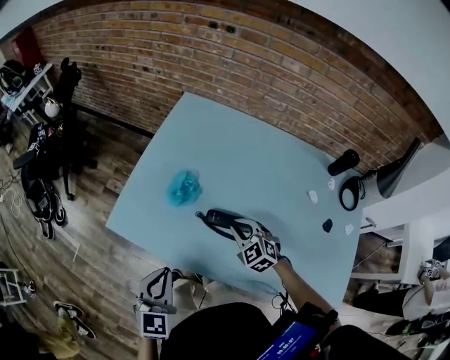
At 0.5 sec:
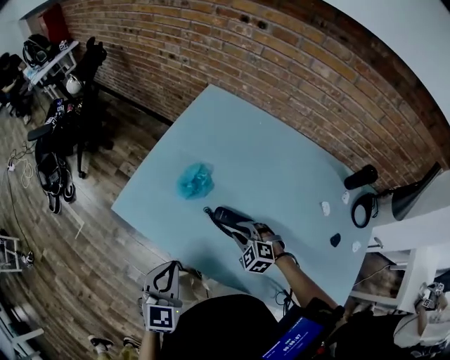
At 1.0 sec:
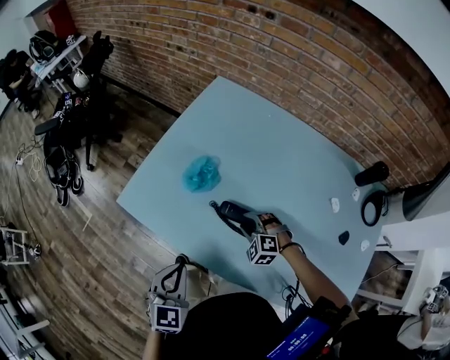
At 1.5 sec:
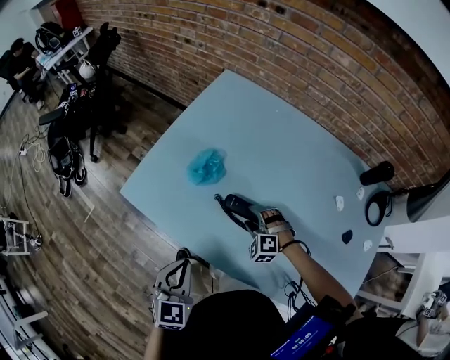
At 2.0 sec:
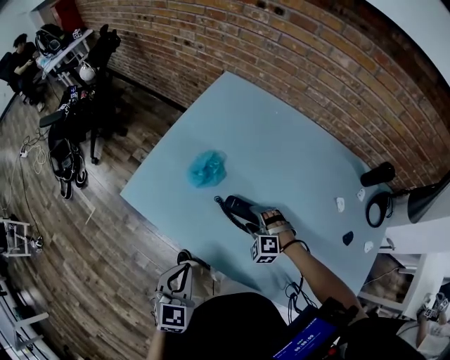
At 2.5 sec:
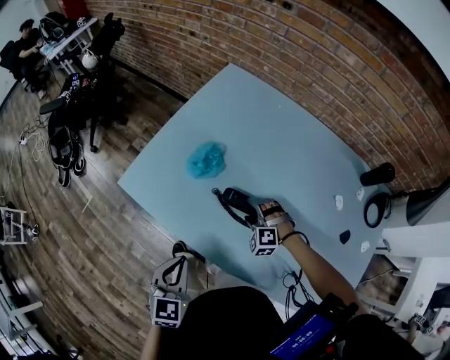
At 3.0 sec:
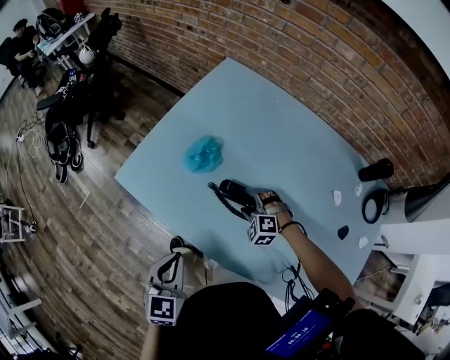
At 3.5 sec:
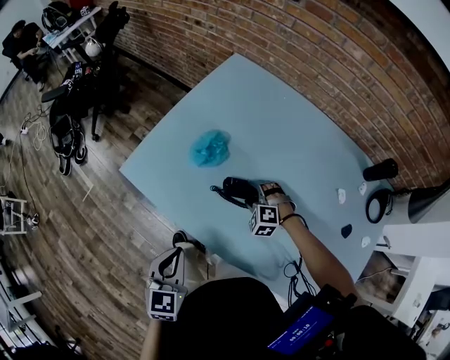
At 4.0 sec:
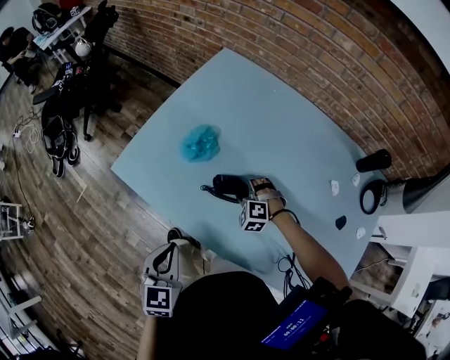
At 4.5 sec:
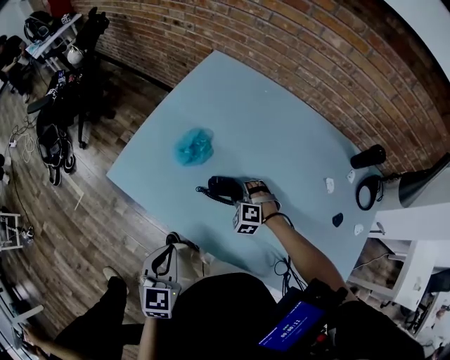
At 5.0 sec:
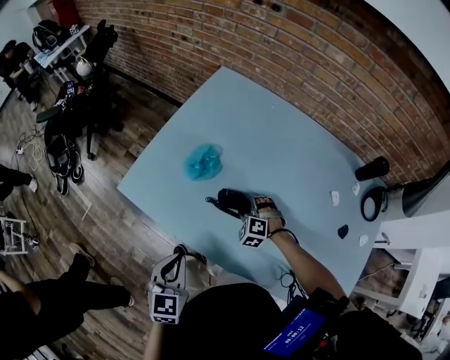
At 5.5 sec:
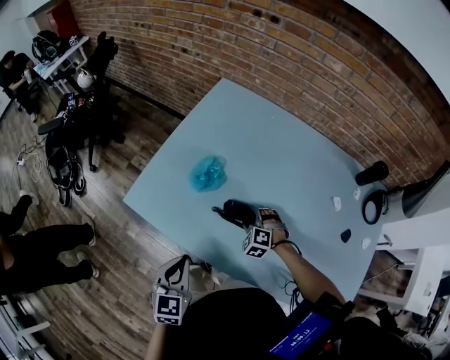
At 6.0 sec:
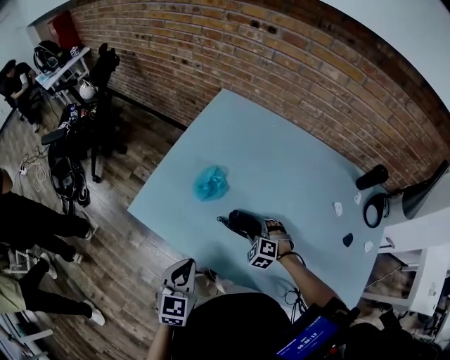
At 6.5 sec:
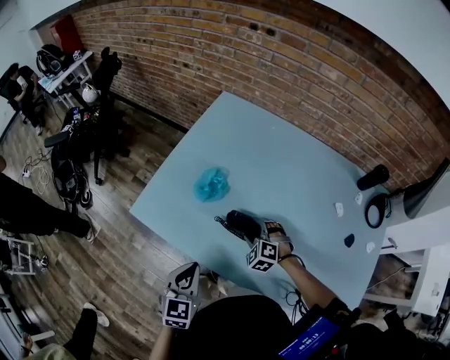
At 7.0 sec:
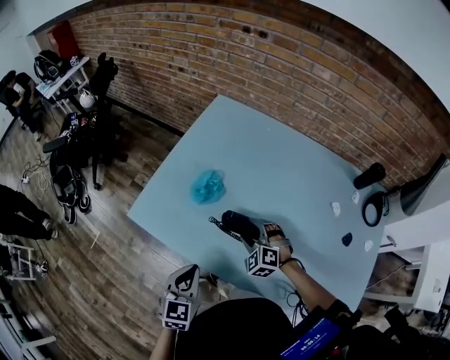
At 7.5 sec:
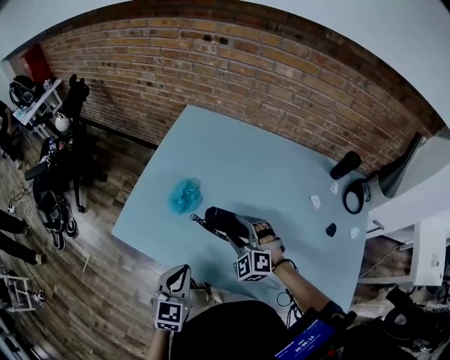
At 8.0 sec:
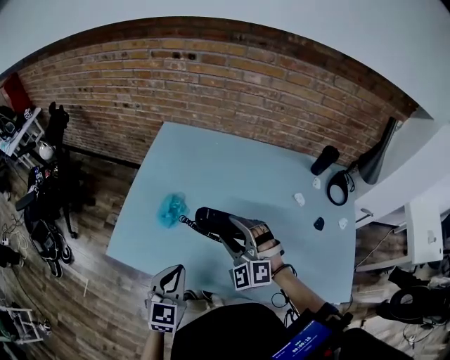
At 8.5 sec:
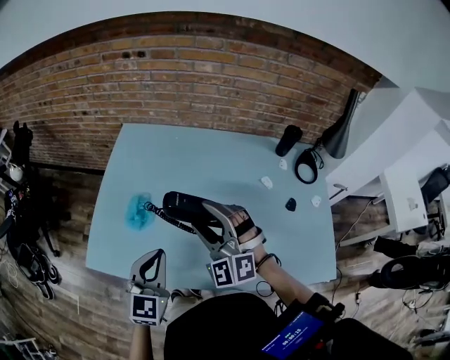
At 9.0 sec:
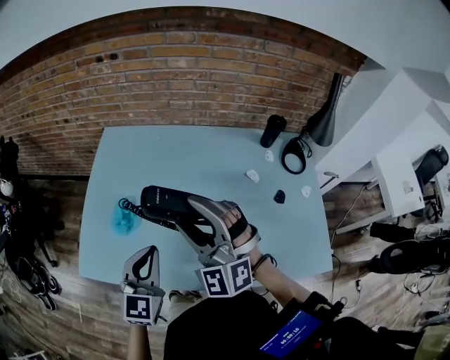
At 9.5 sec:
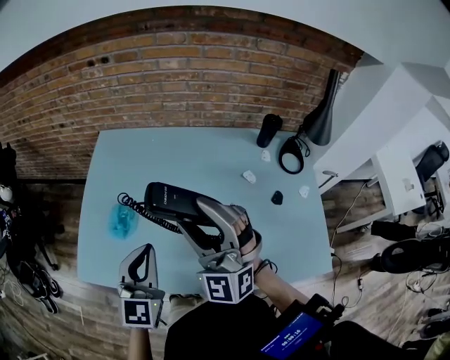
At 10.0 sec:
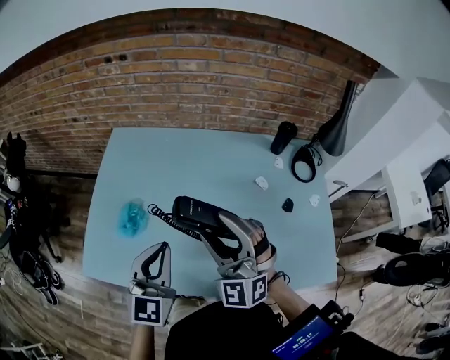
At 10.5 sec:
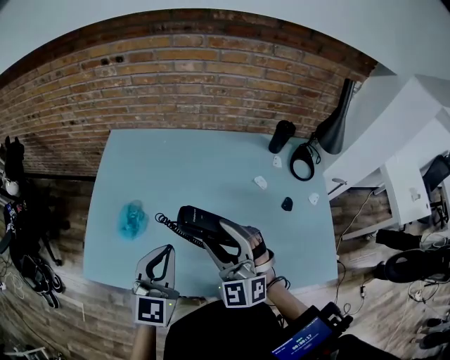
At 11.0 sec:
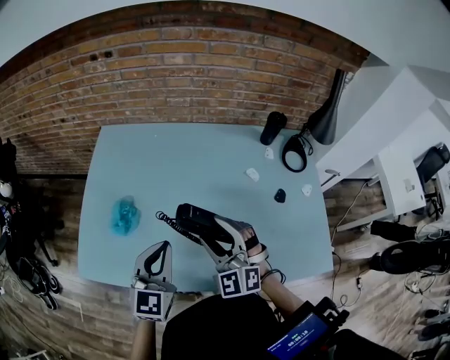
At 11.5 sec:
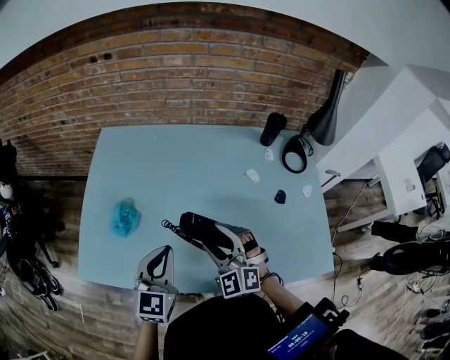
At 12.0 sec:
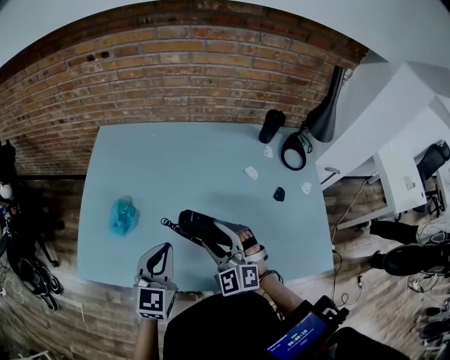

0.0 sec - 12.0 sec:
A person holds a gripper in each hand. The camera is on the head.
0.0 sec - 2.0 sec: The right gripper is displaced downward by roughly 10 cm, rolls counterclockwise, seen from behind, by about 40 degrees, and opens. Meanwhile the left gripper travels downward by about 5 cm.
2.0 sec - 4.0 sec: The grippers move only a little.
4.0 sec - 6.0 sec: The left gripper heads forward, covering about 5 cm.
6.0 sec - 8.0 sec: The right gripper moves upward, approximately 25 cm, and tilts its fingers approximately 30 degrees upward. Meanwhile the left gripper shifts roughly 10 cm to the right and upward.
8.0 sec - 10.0 sec: The left gripper is displaced to the right, upward and forward by approximately 15 cm. Meanwhile the right gripper goes some 15 cm upward and to the right, and rotates some 20 degrees.
10.0 sec - 12.0 sec: The right gripper travels downward by about 15 cm. The left gripper moves downward, some 5 cm.

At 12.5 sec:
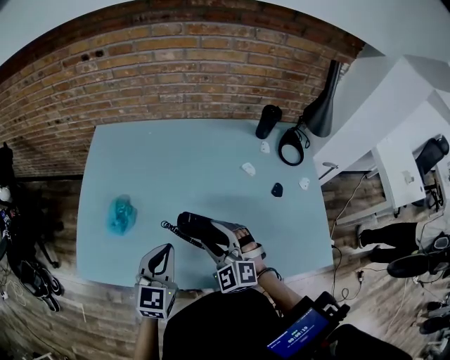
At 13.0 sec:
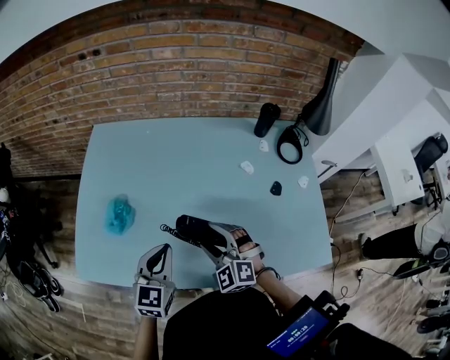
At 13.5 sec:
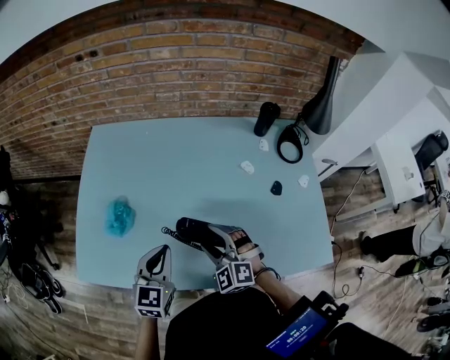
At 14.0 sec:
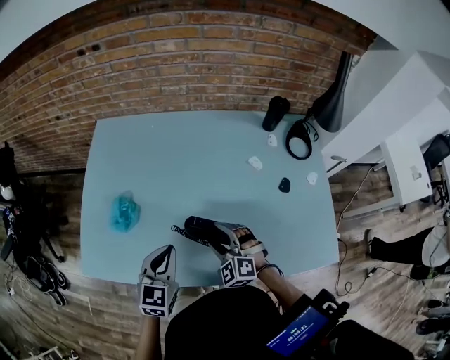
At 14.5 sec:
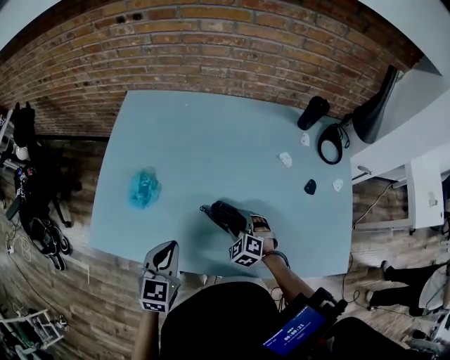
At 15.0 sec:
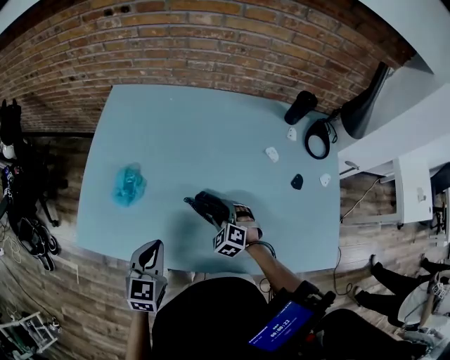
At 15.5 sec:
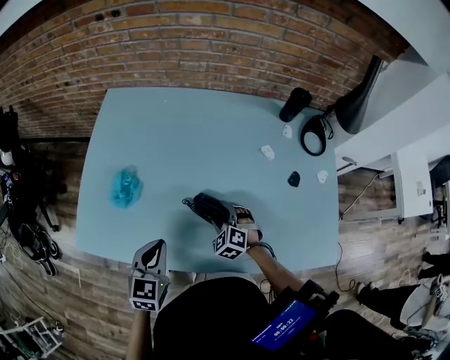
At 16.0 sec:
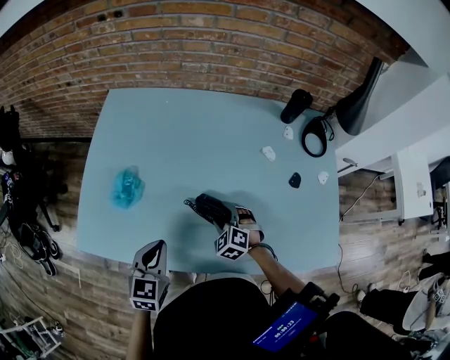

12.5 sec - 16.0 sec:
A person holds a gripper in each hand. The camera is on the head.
12.5 sec - 14.5 sec: The right gripper heads downward, covering some 20 cm, and rotates roughly 20 degrees. Meanwhile the left gripper goes roughly 5 cm to the left.
14.5 sec - 16.0 sec: The grippers stay close to where they were, moving slightly.

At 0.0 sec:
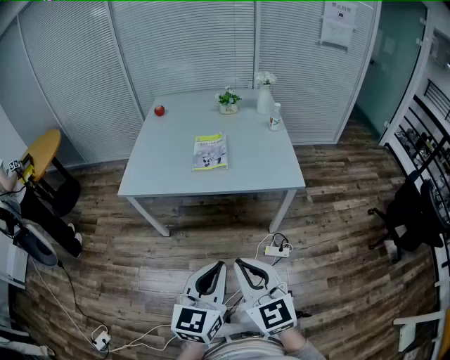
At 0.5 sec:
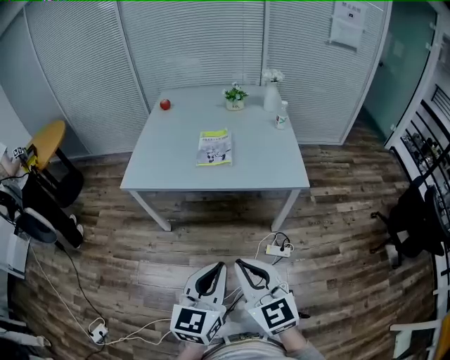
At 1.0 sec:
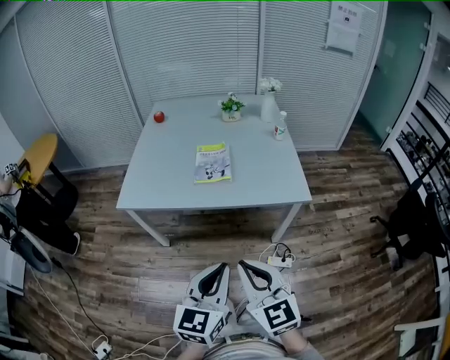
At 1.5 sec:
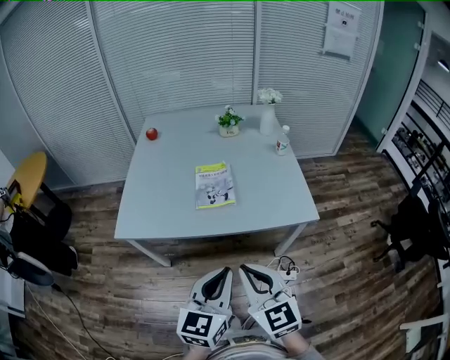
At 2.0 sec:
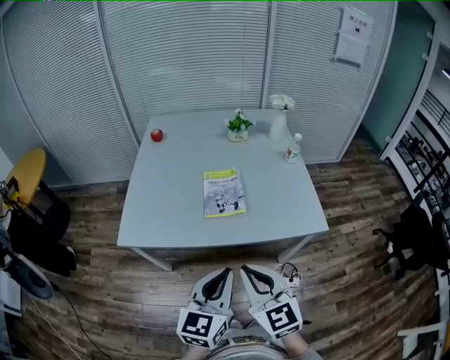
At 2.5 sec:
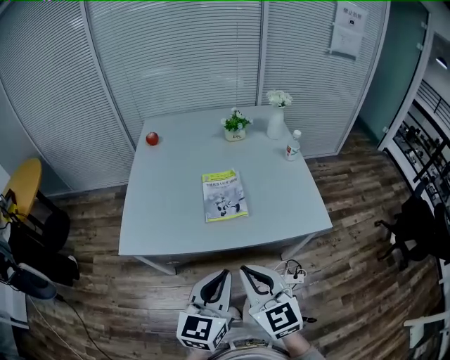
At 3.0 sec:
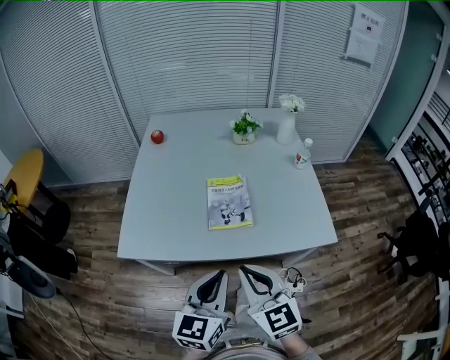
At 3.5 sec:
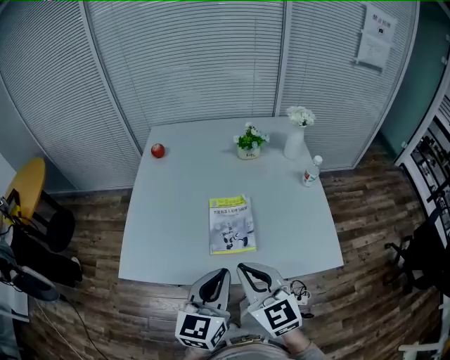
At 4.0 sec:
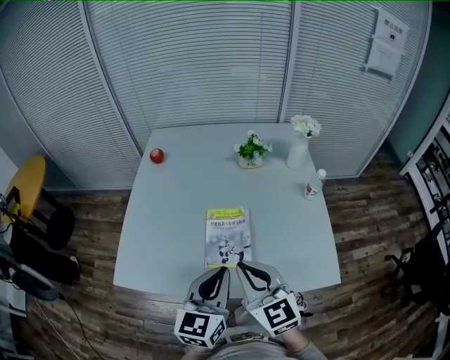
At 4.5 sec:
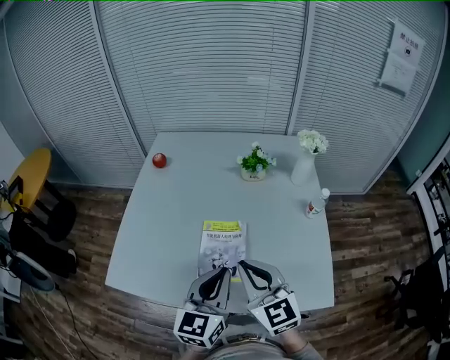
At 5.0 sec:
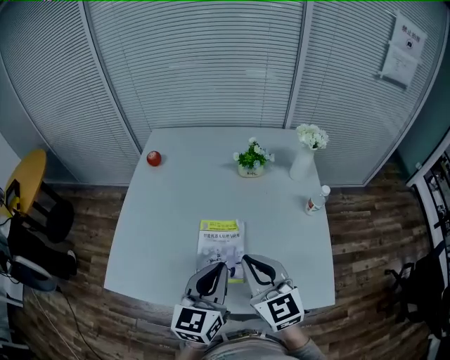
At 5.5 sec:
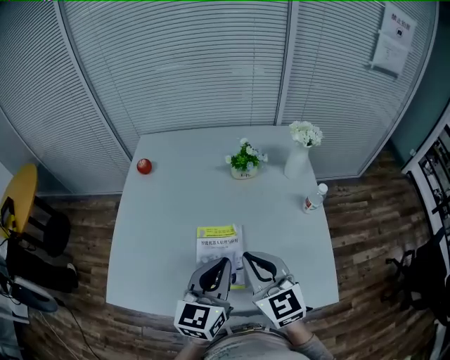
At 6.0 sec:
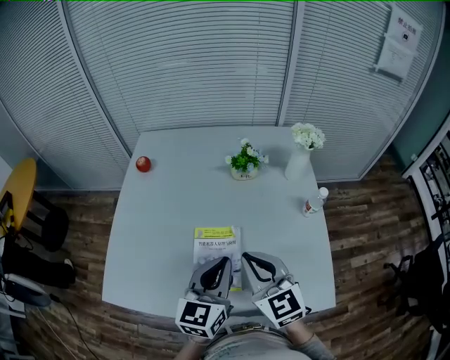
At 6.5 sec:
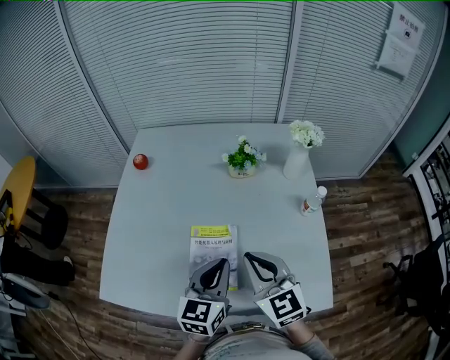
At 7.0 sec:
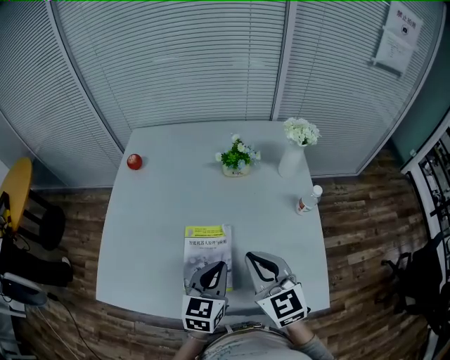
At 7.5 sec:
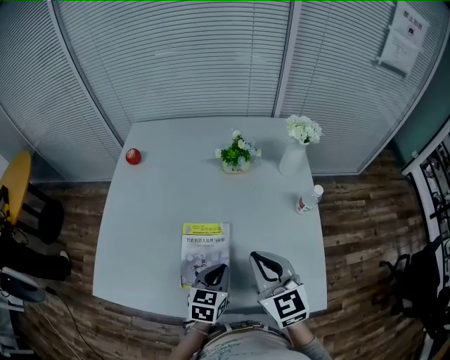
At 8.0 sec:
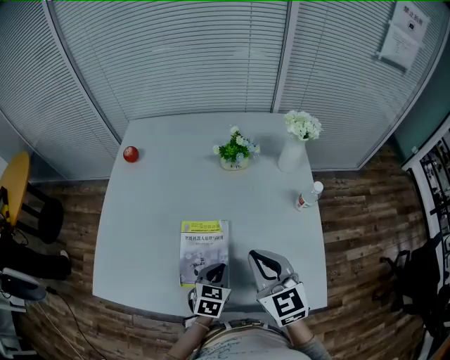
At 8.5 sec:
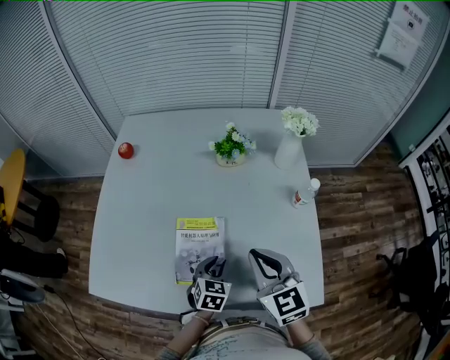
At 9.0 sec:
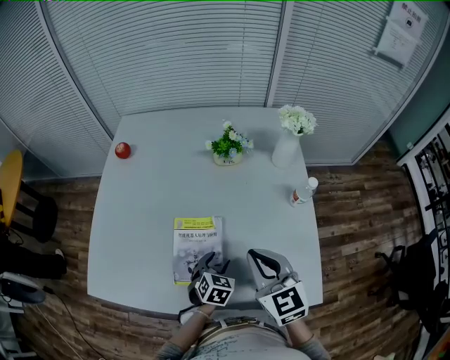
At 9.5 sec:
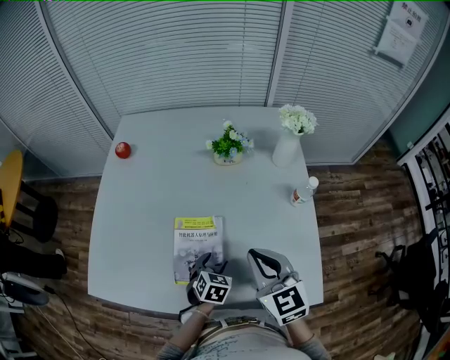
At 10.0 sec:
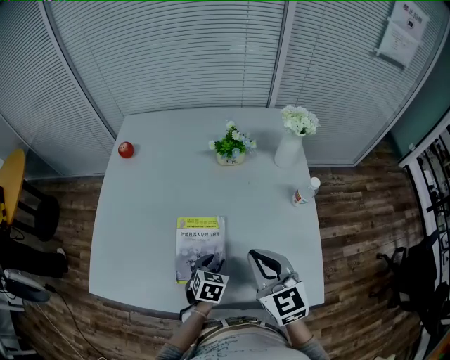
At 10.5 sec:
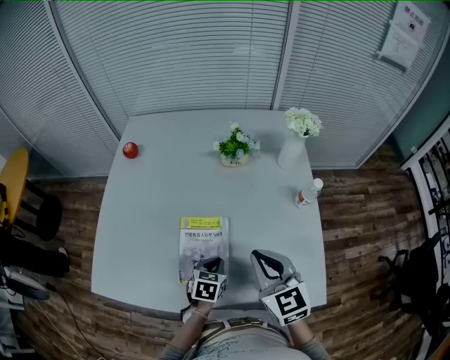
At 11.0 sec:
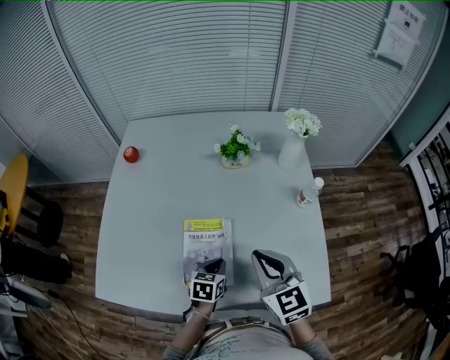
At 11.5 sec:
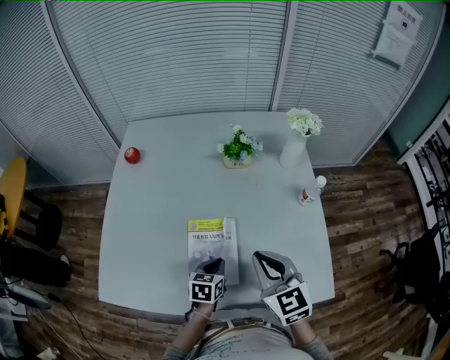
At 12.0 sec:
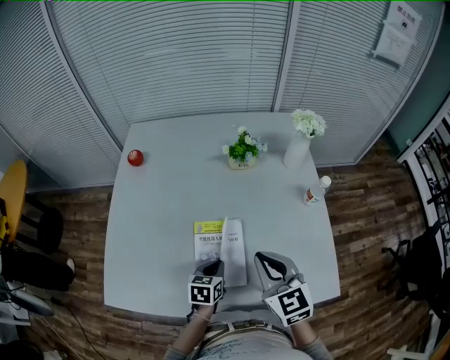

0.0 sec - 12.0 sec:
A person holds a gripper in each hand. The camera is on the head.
0.0 sec - 2.0 sec: Both grippers move forward, about 25 cm.
2.0 sec - 4.0 sec: Both grippers move forward, approximately 25 cm.
4.0 sec - 6.0 sec: Both grippers travel together forward and to the right, about 15 cm.
6.0 sec - 8.0 sec: The right gripper heads to the right, covering approximately 5 cm. The left gripper shifts some 20 cm downward, and tilts its fingers roughly 30 degrees downward.
8.0 sec - 10.0 sec: The left gripper opens.
10.0 sec - 12.0 sec: The grippers both shift to the left by about 5 cm. The left gripper closes its fingers.
